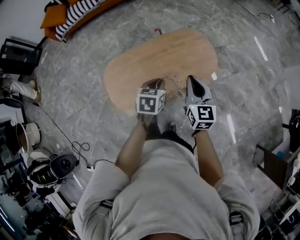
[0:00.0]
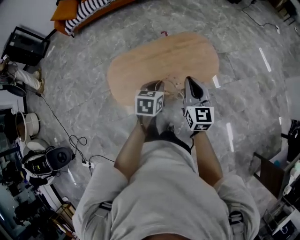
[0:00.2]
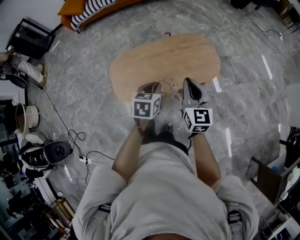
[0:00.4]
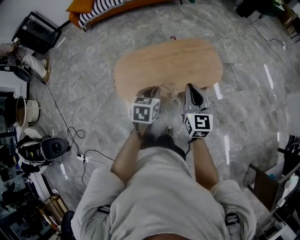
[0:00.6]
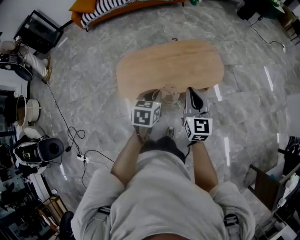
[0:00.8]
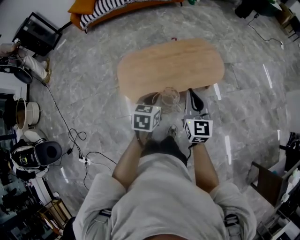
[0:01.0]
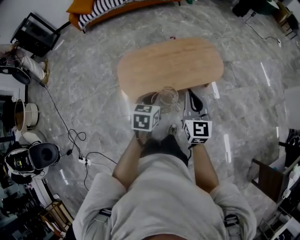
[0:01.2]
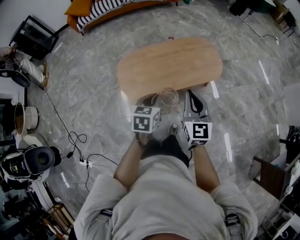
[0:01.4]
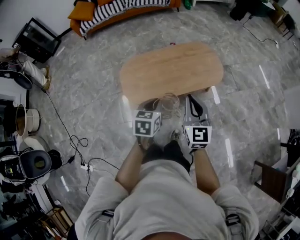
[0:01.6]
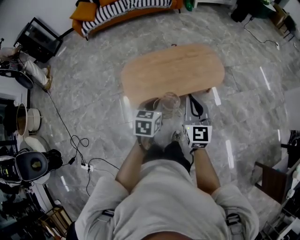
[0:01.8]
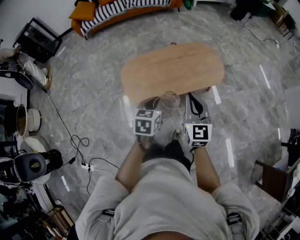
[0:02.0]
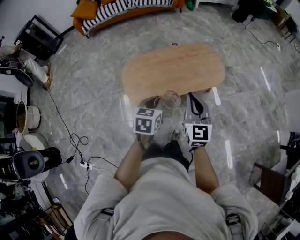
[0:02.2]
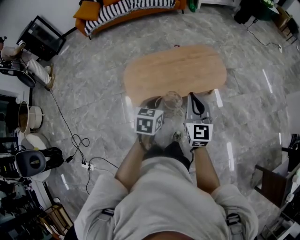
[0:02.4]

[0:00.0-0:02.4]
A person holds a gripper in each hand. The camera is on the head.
0:00.0 to 0:01.2: The grippers both shift backward and to the left by some 20 cm.
0:01.2 to 0:02.4: The grippers stay close to where they were, moving slightly.

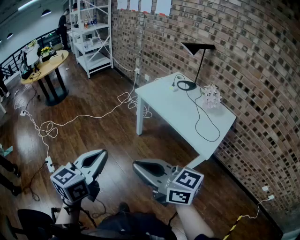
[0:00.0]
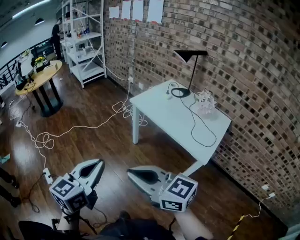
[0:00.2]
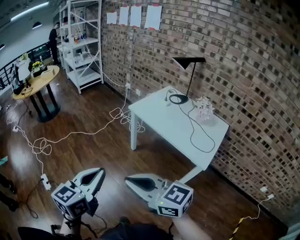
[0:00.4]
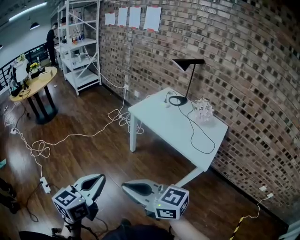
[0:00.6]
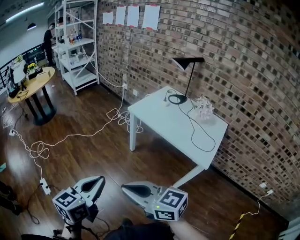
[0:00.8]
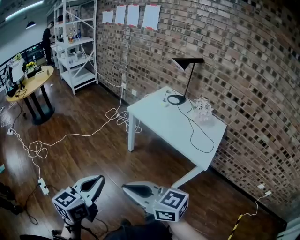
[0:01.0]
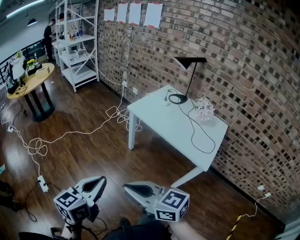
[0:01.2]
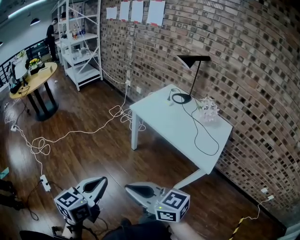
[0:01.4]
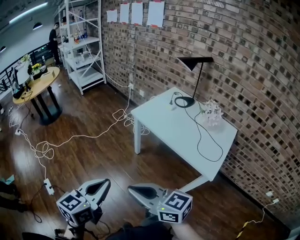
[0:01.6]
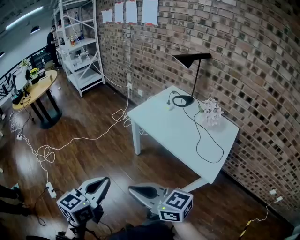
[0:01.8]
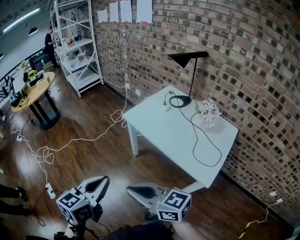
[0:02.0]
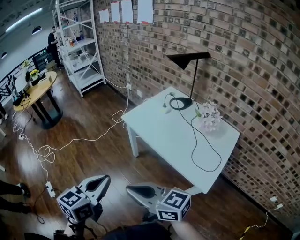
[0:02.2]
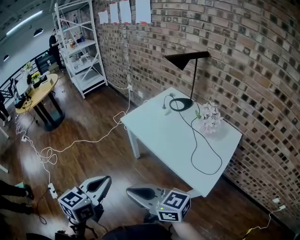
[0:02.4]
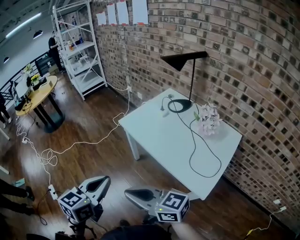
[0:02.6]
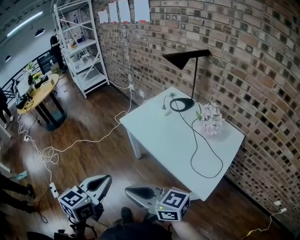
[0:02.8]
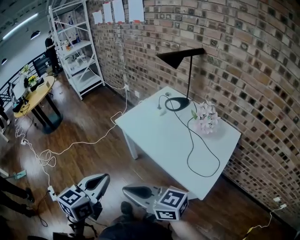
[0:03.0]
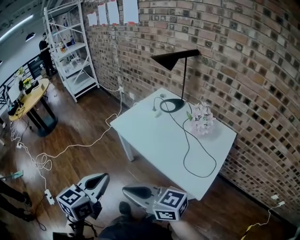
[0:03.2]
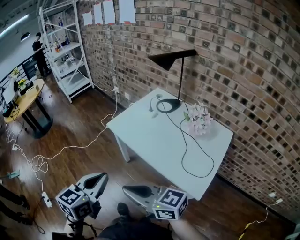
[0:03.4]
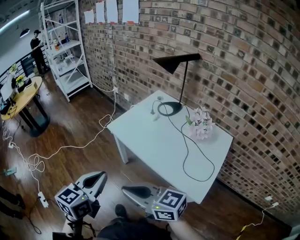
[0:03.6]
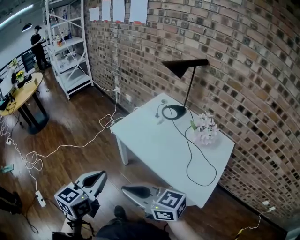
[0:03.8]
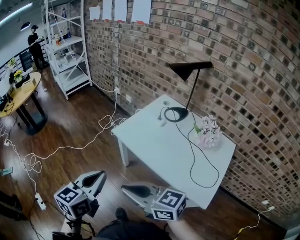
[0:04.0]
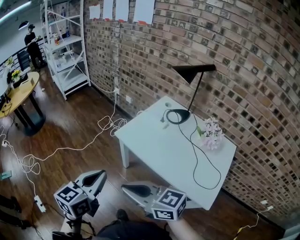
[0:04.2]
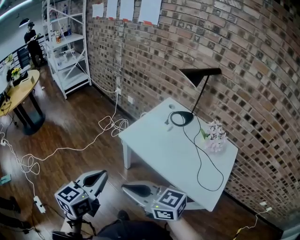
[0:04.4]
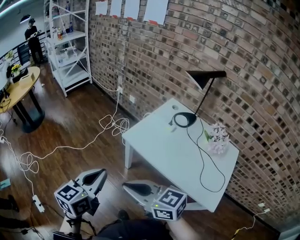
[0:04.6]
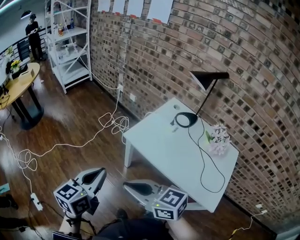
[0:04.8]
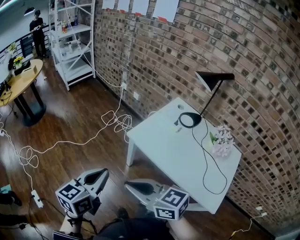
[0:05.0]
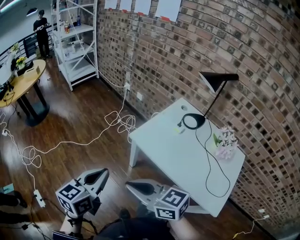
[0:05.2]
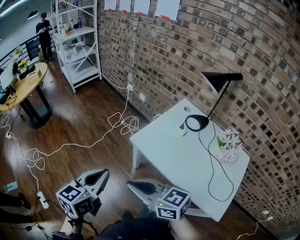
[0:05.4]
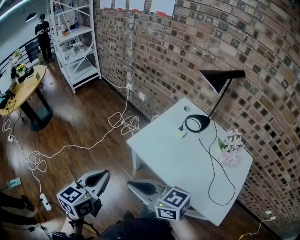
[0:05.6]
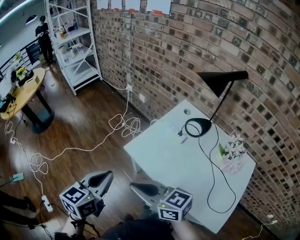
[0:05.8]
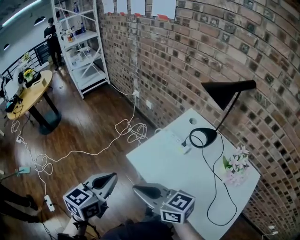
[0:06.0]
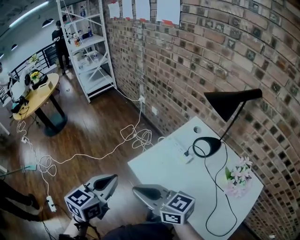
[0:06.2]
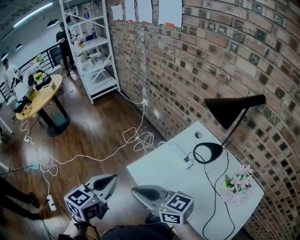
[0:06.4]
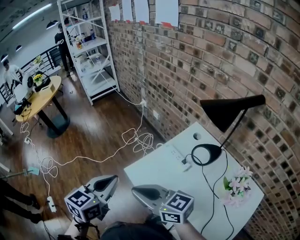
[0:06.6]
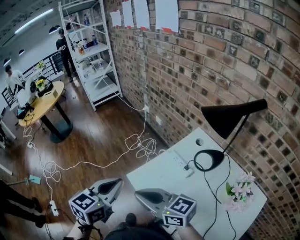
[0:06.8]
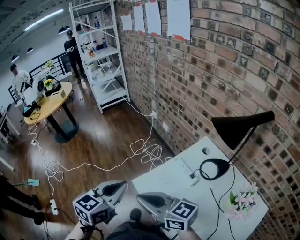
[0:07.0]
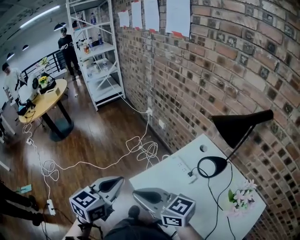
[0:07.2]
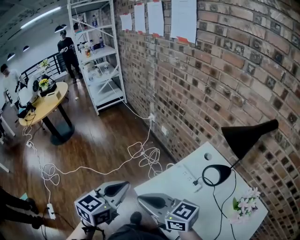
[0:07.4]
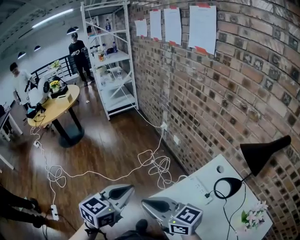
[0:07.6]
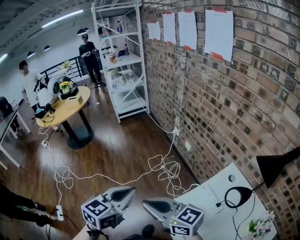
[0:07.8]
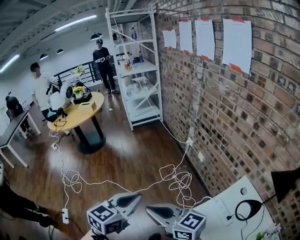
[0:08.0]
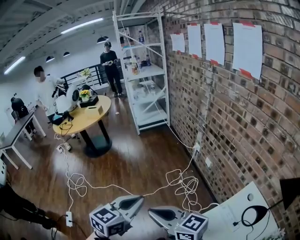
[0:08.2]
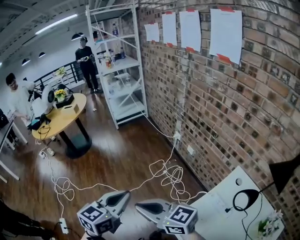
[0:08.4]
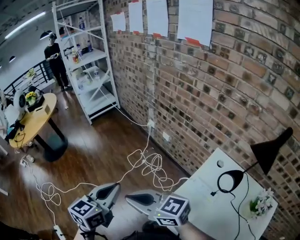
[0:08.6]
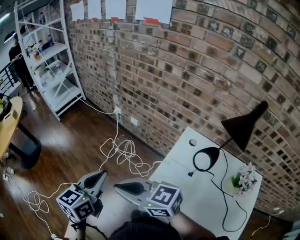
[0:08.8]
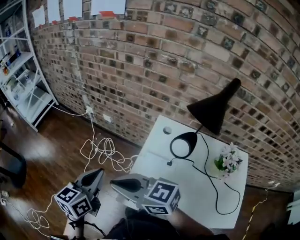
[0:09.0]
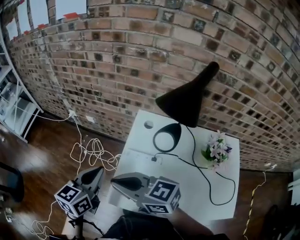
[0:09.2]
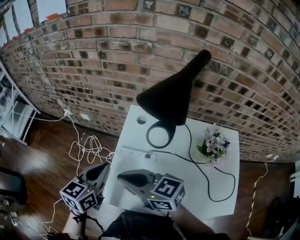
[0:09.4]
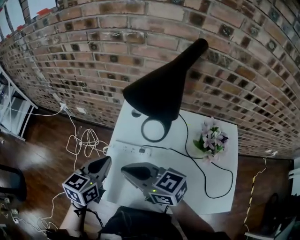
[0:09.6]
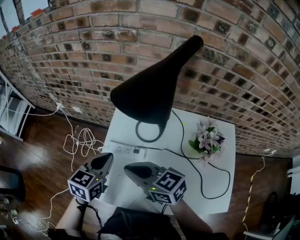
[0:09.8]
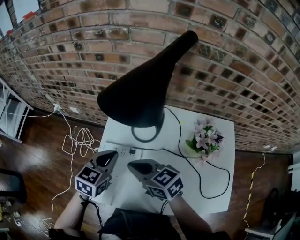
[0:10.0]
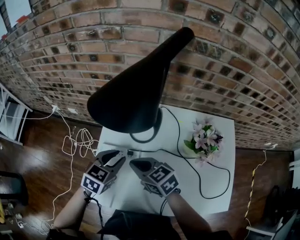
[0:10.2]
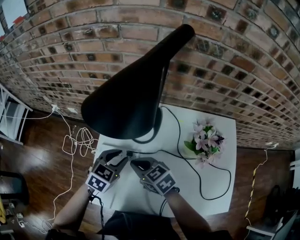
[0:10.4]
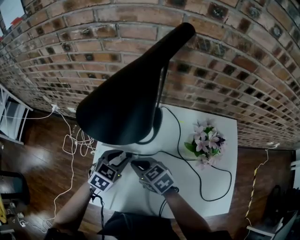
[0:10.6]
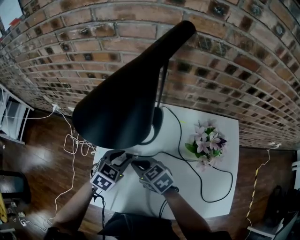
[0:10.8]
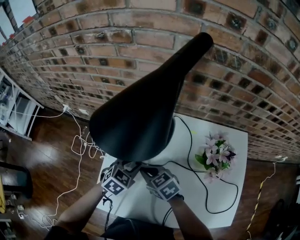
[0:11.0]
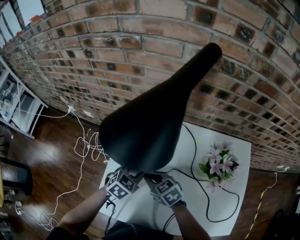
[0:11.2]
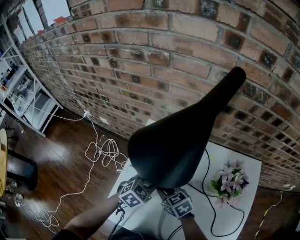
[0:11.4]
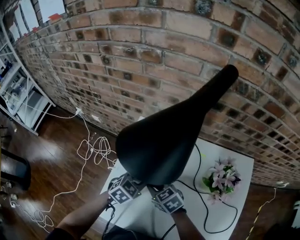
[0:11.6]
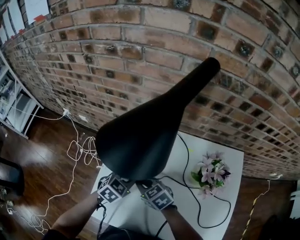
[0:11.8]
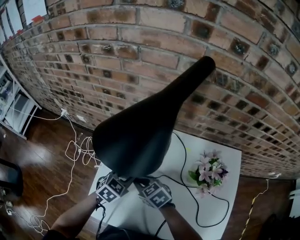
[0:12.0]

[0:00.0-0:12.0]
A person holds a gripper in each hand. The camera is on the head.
0:00.0 to 0:01.6: The left gripper moves some 5 cm, while the right gripper is displaced forward and downward by some 10 cm, and reaches approximately 10 cm to the left, then returns.
0:01.6 to 0:03.0: Both grippers move to the right and forward, approximately 20 cm.
0:03.0 to 0:04.4: The grippers both shift forward and to the left by about 20 cm.
0:04.4 to 0:06.0: Both grippers travel together forward and to the right, about 20 cm.
0:06.0 to 0:07.6: Both grippers move forward, roughly 15 cm.
0:07.6 to 0:09.0: The left gripper moves roughly 15 cm, and turns by roughly 30 degrees; the right gripper moves about 10 cm, and swivels roughly 20 degrees.
0:09.0 to 0:10.4: The right gripper ends up some 35 cm from where it was, and rotates about 40 degrees. Meanwhile the left gripper moves about 35 cm, turns by about 50 degrees, and opens.
0:10.4 to 0:12.0: Both grippers move downward, roughly 5 cm.

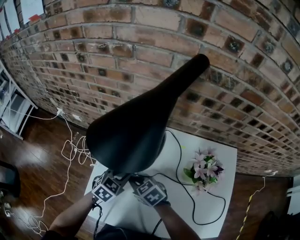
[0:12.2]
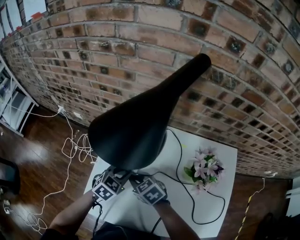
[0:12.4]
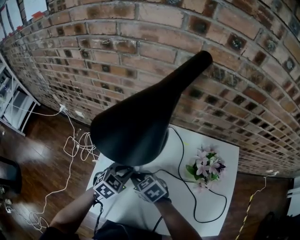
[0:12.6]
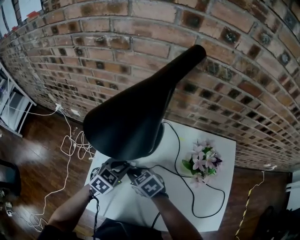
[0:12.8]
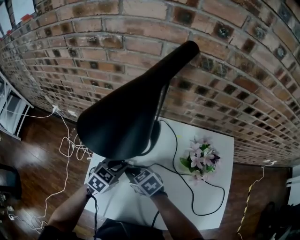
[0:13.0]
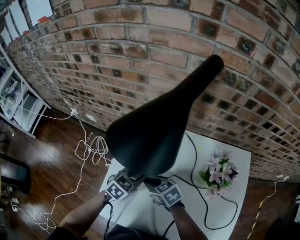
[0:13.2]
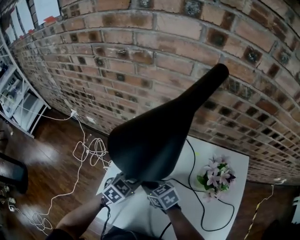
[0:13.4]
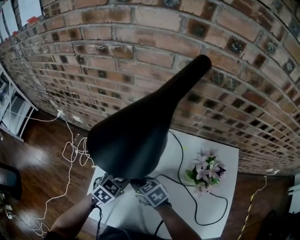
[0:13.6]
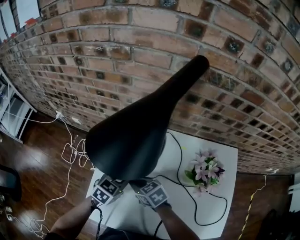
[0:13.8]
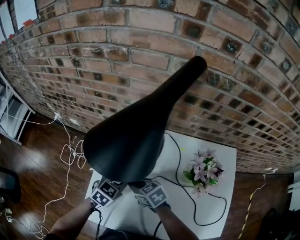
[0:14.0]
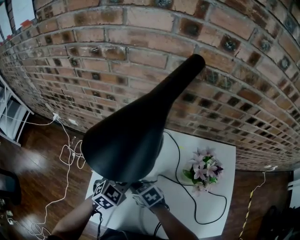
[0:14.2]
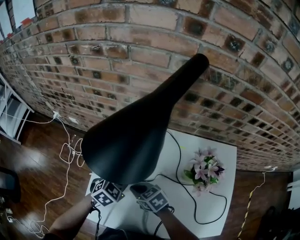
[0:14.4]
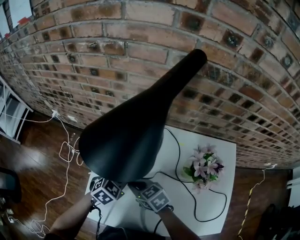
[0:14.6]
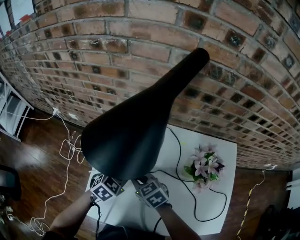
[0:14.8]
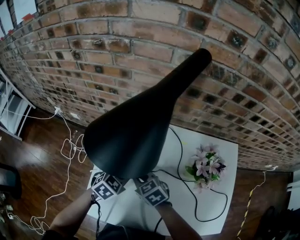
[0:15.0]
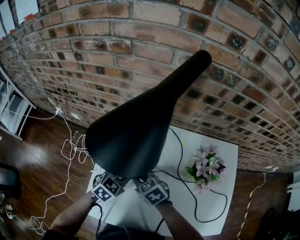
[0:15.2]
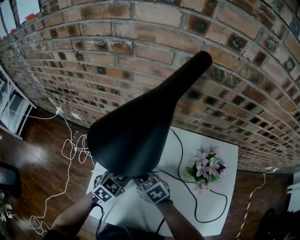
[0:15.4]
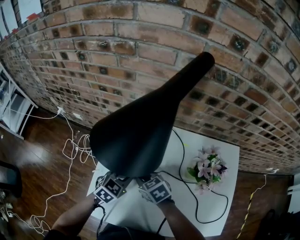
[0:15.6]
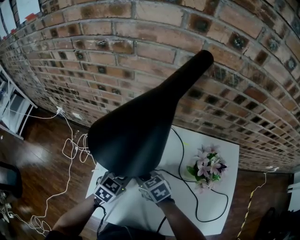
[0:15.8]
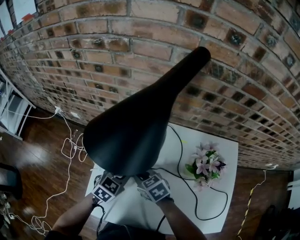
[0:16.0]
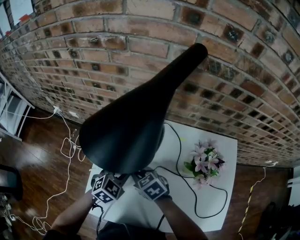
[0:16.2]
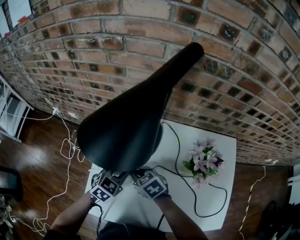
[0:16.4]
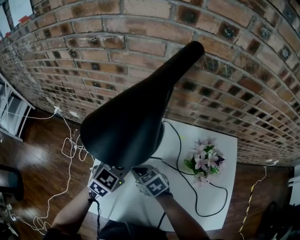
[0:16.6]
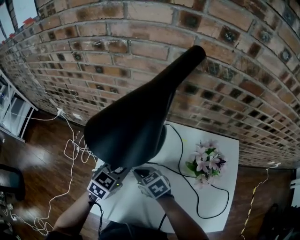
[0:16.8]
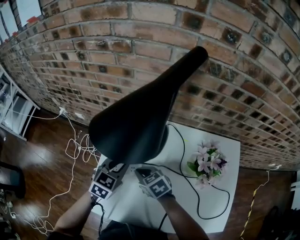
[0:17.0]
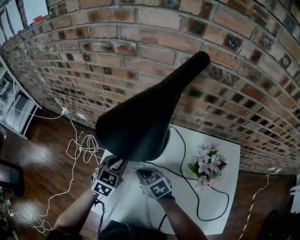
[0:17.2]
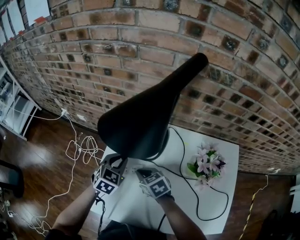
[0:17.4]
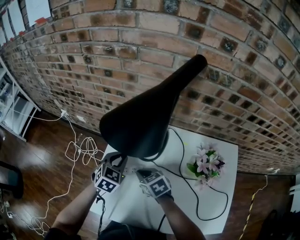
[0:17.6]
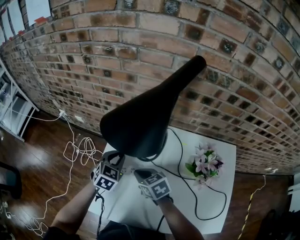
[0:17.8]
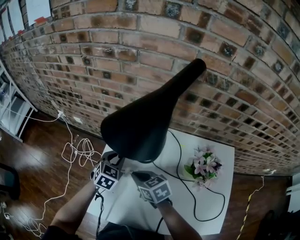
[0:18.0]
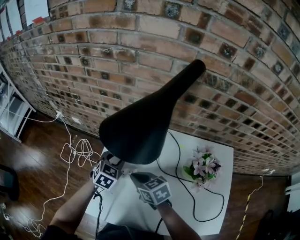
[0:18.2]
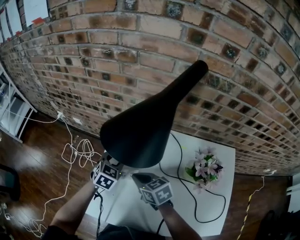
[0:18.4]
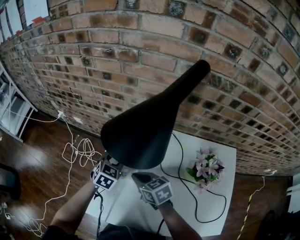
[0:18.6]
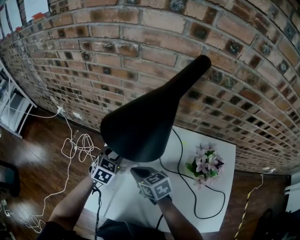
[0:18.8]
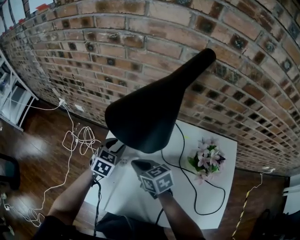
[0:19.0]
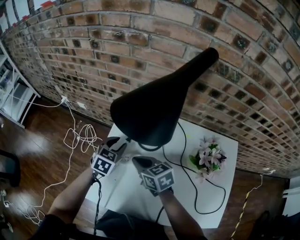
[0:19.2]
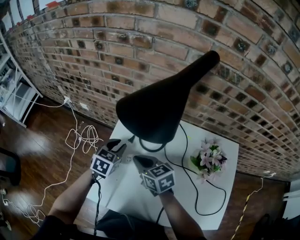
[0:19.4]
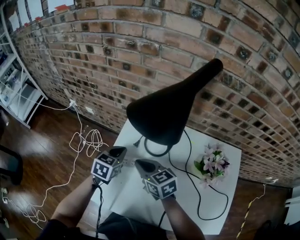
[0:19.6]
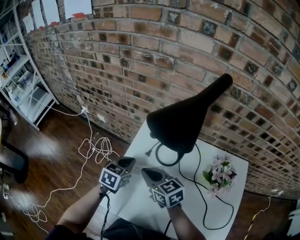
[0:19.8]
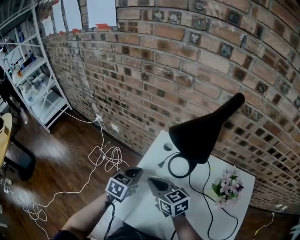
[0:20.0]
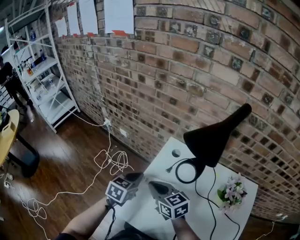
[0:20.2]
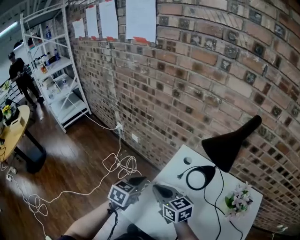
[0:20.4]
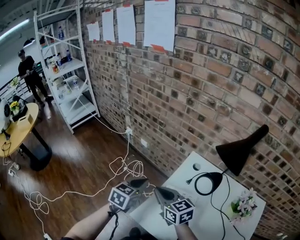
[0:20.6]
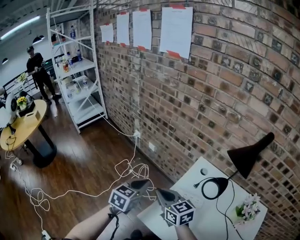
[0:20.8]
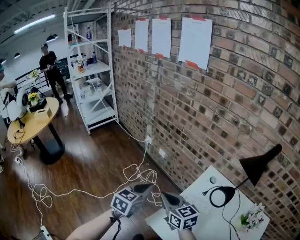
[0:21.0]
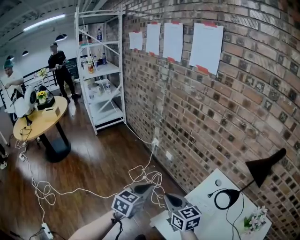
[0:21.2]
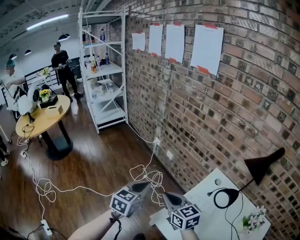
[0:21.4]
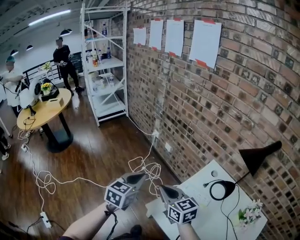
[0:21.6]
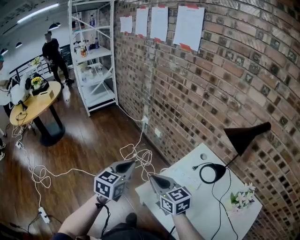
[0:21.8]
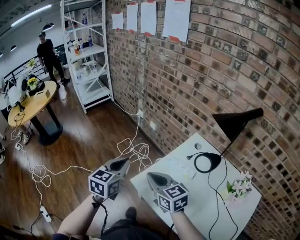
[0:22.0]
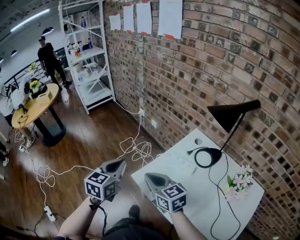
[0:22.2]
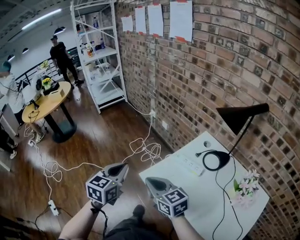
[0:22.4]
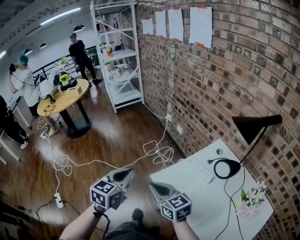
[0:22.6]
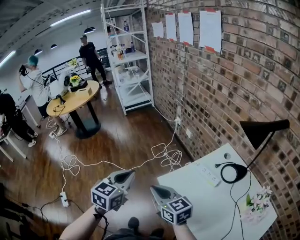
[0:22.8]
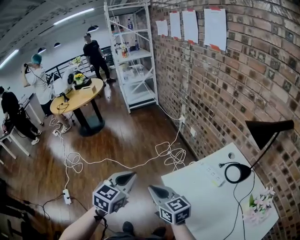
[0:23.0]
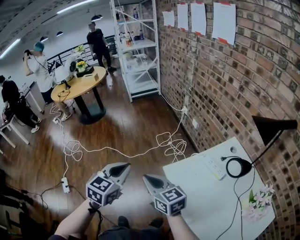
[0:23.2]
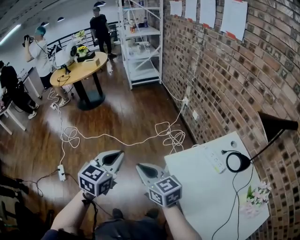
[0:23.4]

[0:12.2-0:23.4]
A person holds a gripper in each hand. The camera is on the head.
0:12.2 to 0:15.4: There are only small adjustments of the grippers.
0:15.4 to 0:17.0: The left gripper travels upward by some 5 cm.
0:17.0 to 0:18.6: The left gripper heads forward, covering about 5 cm, and opens its fingers.
0:18.6 to 0:20.2: The right gripper travels to the left and upward by approximately 15 cm, and swivels approximately 20 degrees. The left gripper moves to the left, upward and backward, roughly 15 cm, swivels some 20 degrees, and closes up.
0:20.2 to 0:21.8: The right gripper moves to the left and backward, about 20 cm, and swivels roughly 20 degrees, while the left gripper heads to the left, upward and backward, covering approximately 25 cm, and rotates approximately 30 degrees.
0:21.8 to 0:23.4: The left gripper shifts by some 25 cm, and turns by roughly 20 degrees, while the right gripper changes place by about 25 cm, and rotates approximately 30 degrees.
